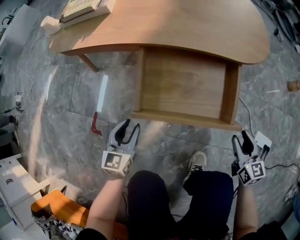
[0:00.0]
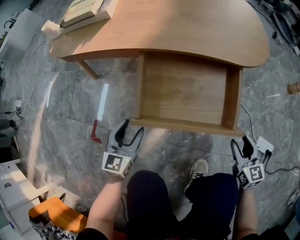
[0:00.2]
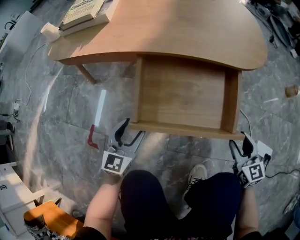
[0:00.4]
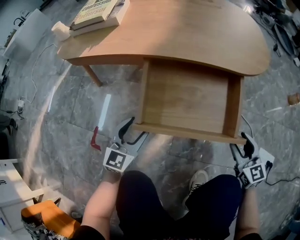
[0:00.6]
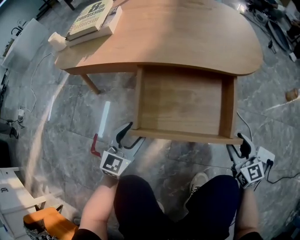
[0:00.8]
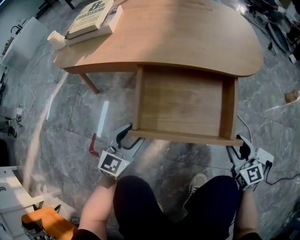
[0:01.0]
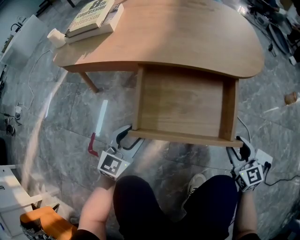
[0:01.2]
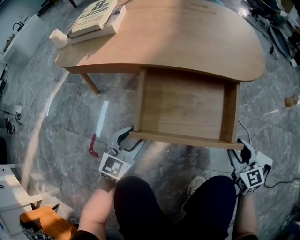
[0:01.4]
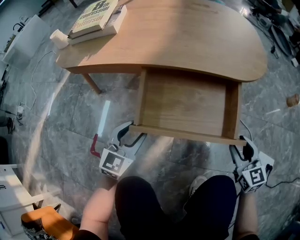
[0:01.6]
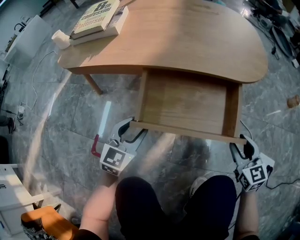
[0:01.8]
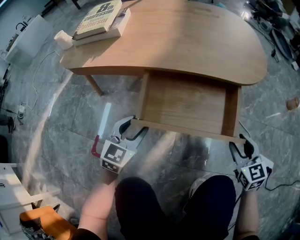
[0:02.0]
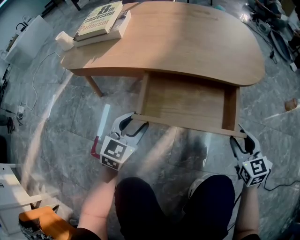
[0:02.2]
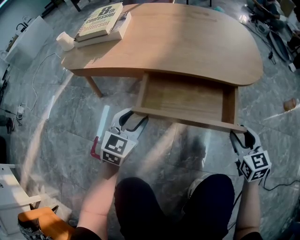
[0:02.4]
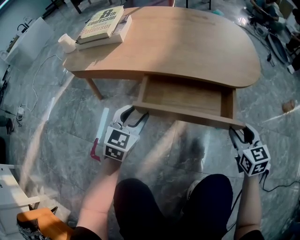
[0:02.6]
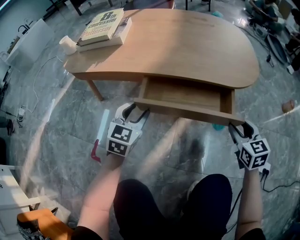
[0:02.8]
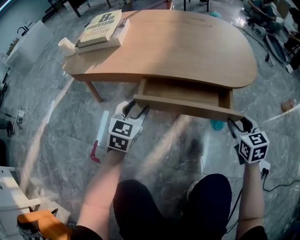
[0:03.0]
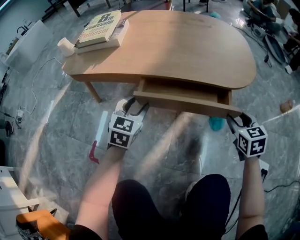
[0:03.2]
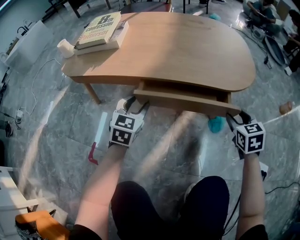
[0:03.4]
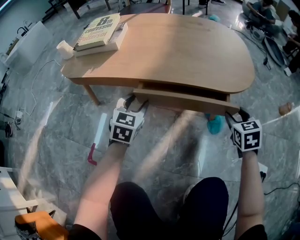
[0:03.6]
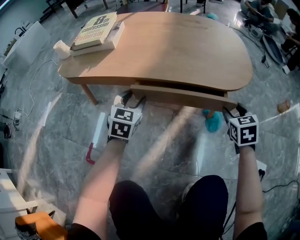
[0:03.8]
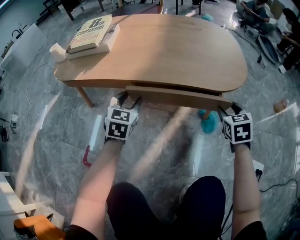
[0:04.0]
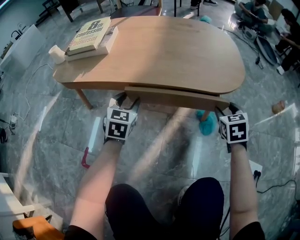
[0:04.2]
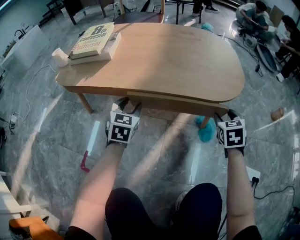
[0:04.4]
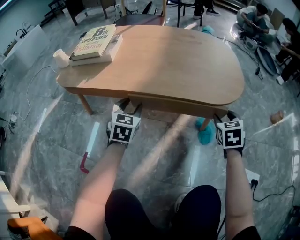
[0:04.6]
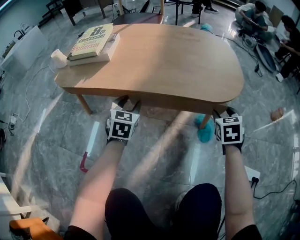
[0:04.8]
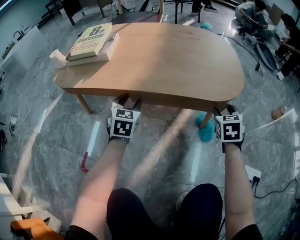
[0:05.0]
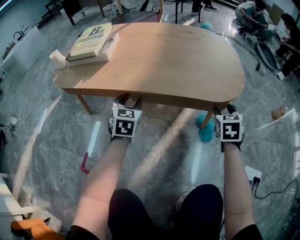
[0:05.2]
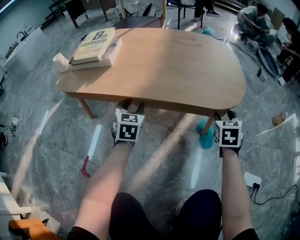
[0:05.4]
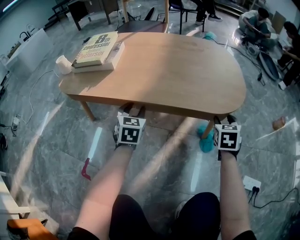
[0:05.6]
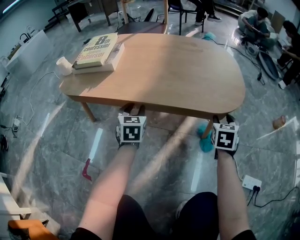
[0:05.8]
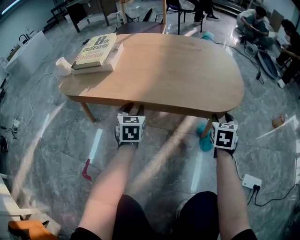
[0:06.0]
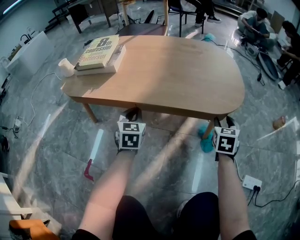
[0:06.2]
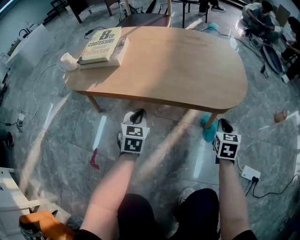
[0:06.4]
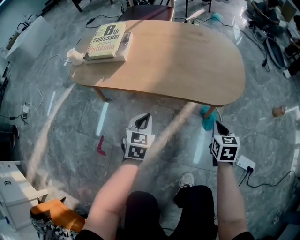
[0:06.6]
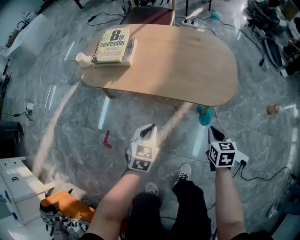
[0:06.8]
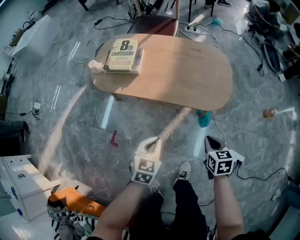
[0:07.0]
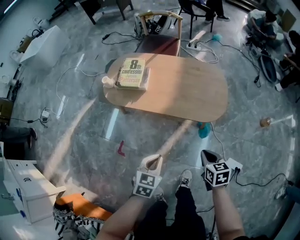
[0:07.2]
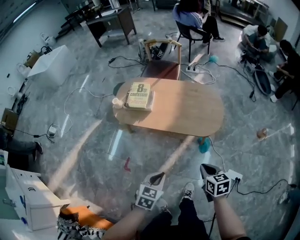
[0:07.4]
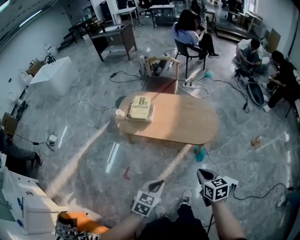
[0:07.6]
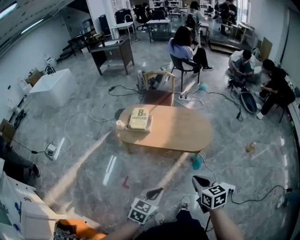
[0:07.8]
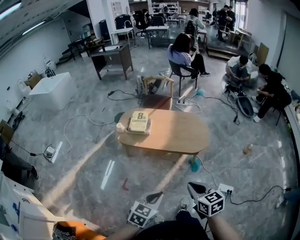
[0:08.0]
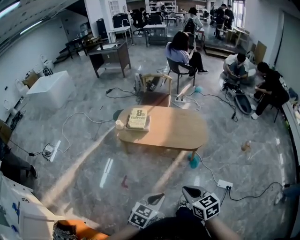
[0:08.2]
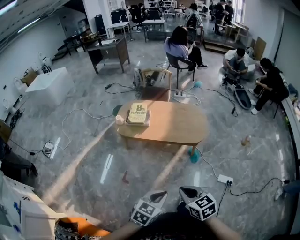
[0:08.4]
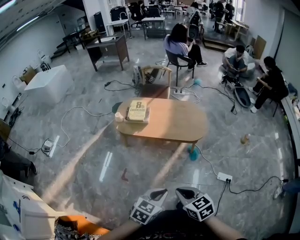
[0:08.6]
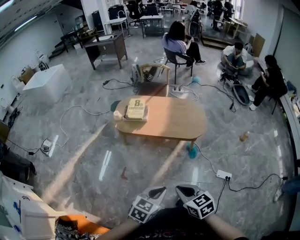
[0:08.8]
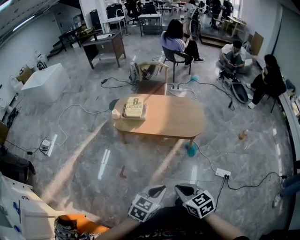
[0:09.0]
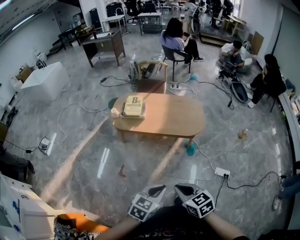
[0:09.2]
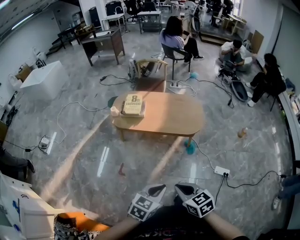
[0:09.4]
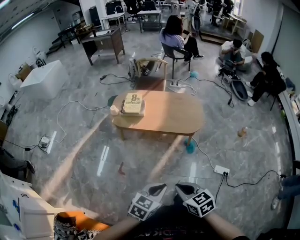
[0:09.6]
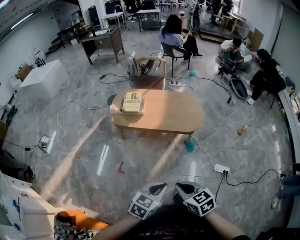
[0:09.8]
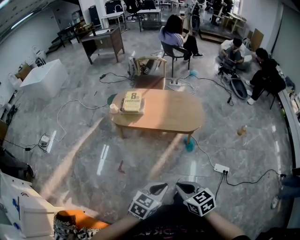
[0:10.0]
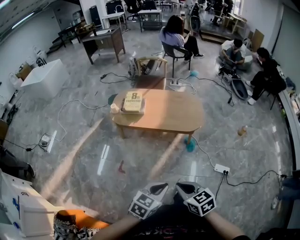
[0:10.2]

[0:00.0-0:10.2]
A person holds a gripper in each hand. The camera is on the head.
0:00.0 to 0:01.4: The left gripper ends up about 5 cm from where it was, and turns by roughly 20 degrees.
0:01.4 to 0:03.0: Both grippers travel together forward, approximately 10 cm.
0:03.0 to 0:04.4: Both grippers travel together forward, some 5 cm.
0:04.4 to 0:05.8: There are only small adjustments of the grippers.
0:05.8 to 0:07.2: The two grippers go roughly 40 cm upward and backward. The left gripper changes its angle by some 20 degrees, and closes up, while the right gripper turns by about 40 degrees, and closes up.
0:07.2 to 0:08.8: The right gripper is displaced backward, upward and to the left by approximately 40 cm. The left gripper is displaced backward and upward by approximately 35 cm.
0:08.8 to 0:10.2: The grippers stay close to where they were, moving slightly.

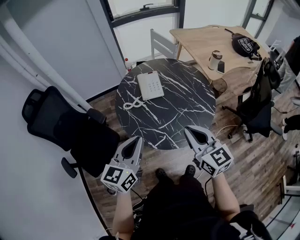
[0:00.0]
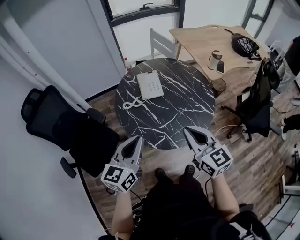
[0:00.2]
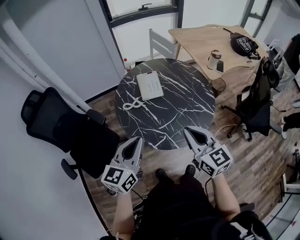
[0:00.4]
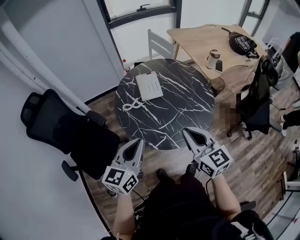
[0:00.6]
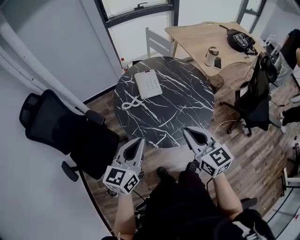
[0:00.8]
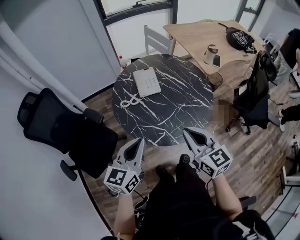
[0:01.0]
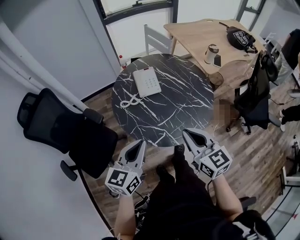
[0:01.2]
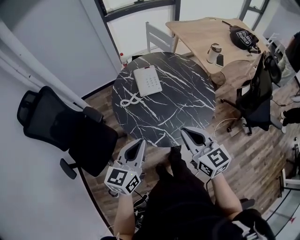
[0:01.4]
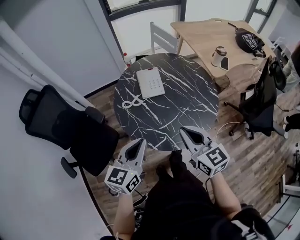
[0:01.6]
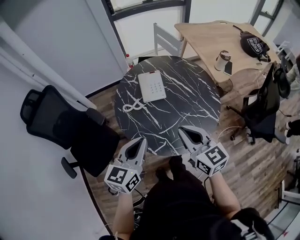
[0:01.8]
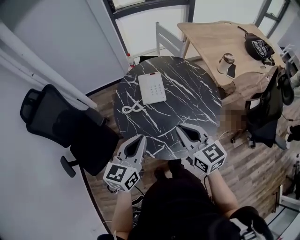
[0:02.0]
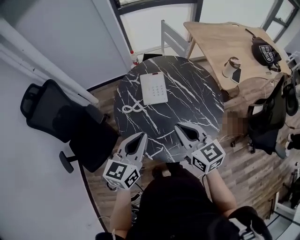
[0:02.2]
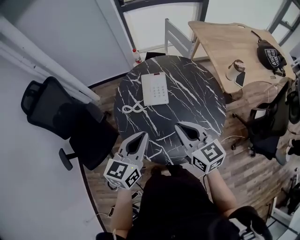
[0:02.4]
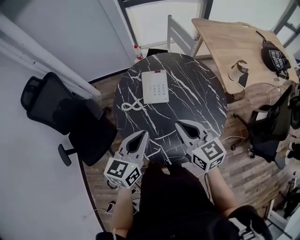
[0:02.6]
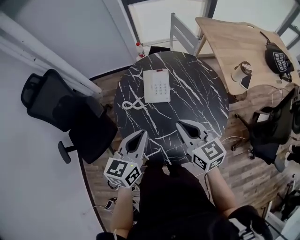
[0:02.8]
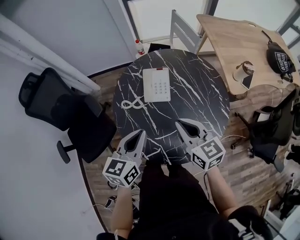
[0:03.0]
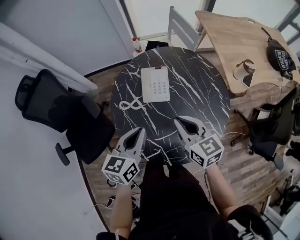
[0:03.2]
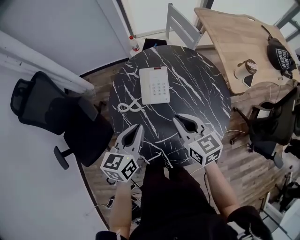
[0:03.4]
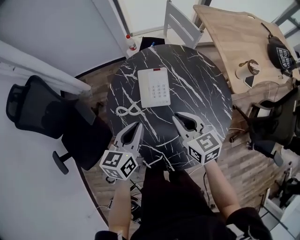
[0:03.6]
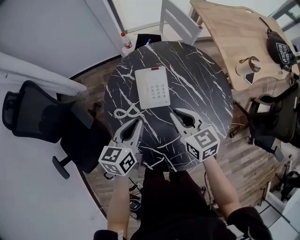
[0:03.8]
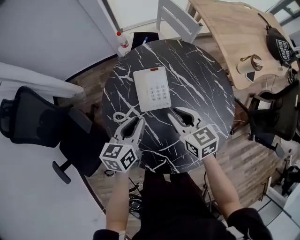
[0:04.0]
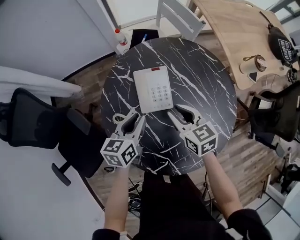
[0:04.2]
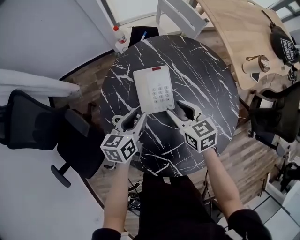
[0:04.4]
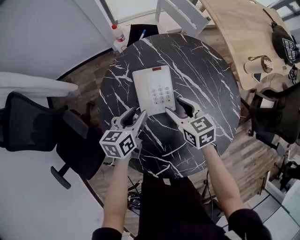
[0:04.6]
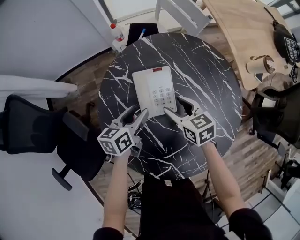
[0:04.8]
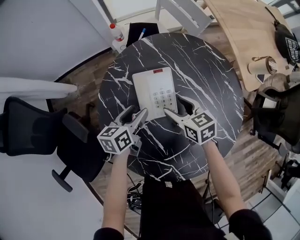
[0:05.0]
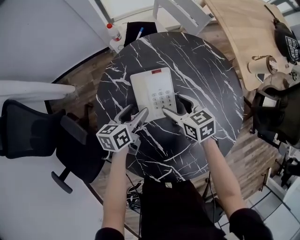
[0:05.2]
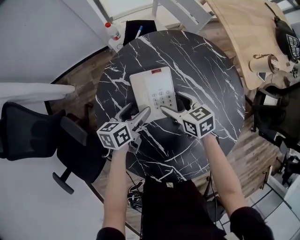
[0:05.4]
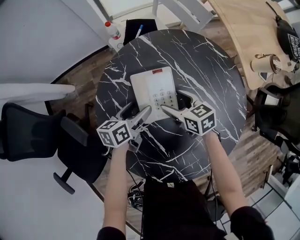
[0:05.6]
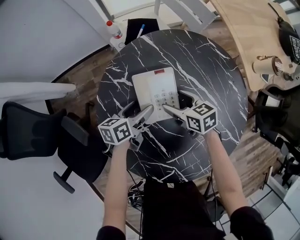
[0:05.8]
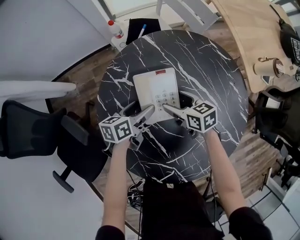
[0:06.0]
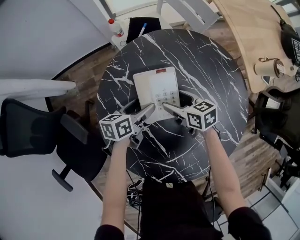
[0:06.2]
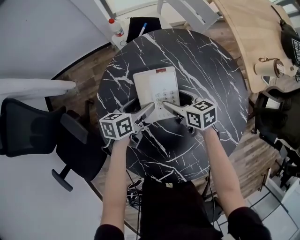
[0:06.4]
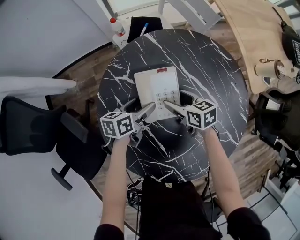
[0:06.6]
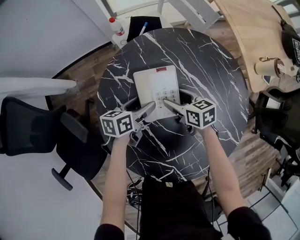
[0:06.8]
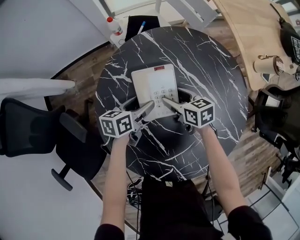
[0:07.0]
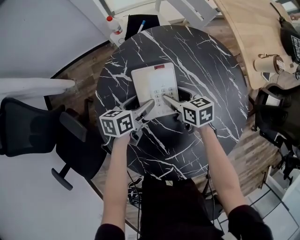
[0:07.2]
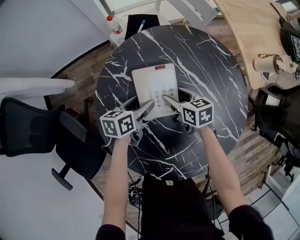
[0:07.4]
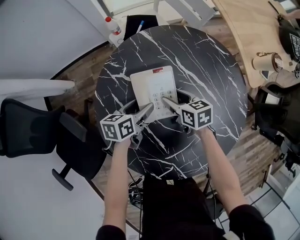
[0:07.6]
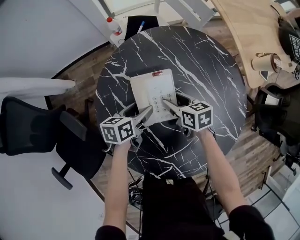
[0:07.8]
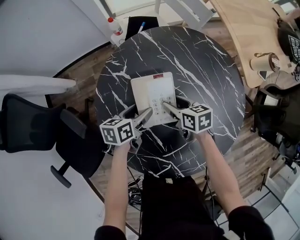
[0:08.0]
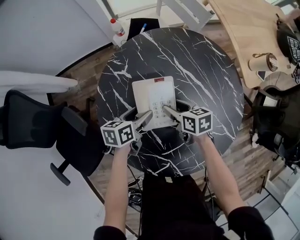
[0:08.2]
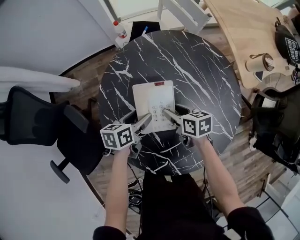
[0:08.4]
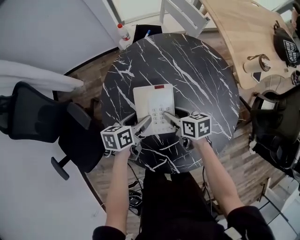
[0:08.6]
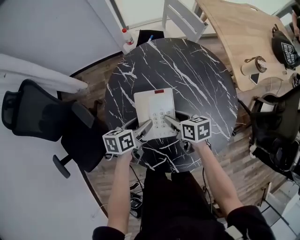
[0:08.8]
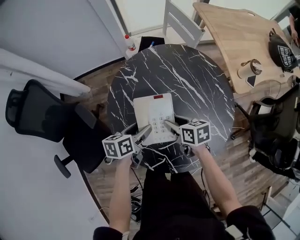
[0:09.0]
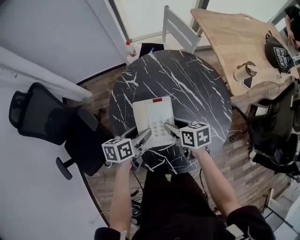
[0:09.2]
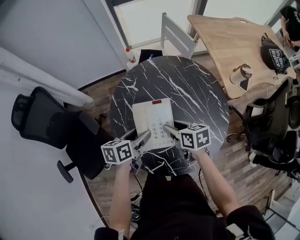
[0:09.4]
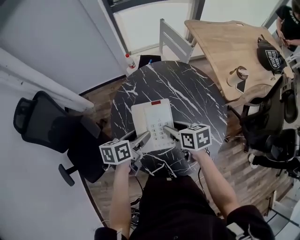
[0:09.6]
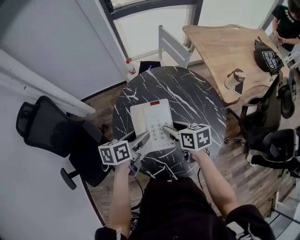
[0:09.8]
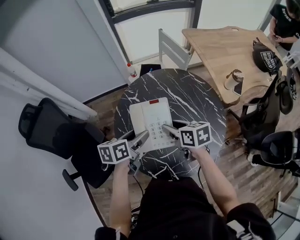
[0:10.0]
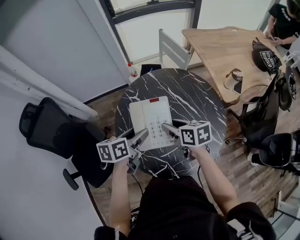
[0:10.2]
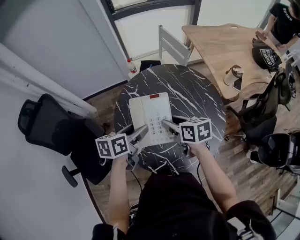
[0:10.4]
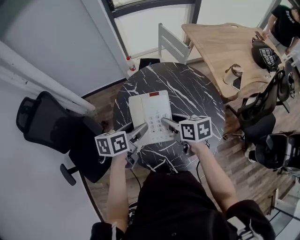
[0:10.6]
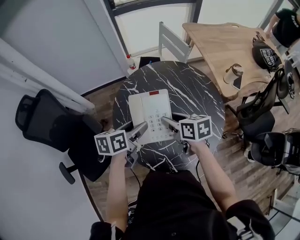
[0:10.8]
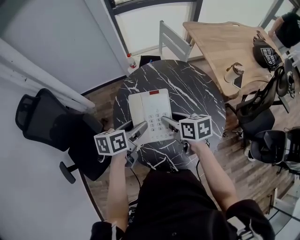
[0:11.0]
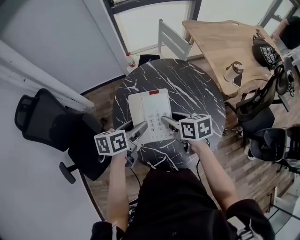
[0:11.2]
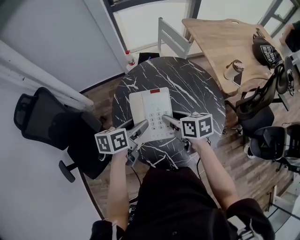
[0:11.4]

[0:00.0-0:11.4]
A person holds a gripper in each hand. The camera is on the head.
0:00.0 to 0:01.4: The grippers stay close to where they were, moving slightly.
0:01.4 to 0:02.8: The left gripper heads forward and to the right, covering roughly 15 cm. Meanwhile the right gripper shifts approximately 20 cm forward.
0:02.8 to 0:04.2: The left gripper goes some 25 cm forward and downward. The right gripper travels downward and forward by some 20 cm.
0:04.2 to 0:05.6: The grippers both shift downward and forward by some 15 cm. The right gripper opens. Meanwhile the left gripper opens.
0:05.6 to 0:07.2: The grippers move only a little.
0:07.2 to 0:08.6: The two grippers go some 15 cm backward and upward.
0:08.6 to 0:10.0: The grippers both shift upward by some 20 cm.
0:10.0 to 0:11.4: The grippers stay close to where they were, moving slightly.

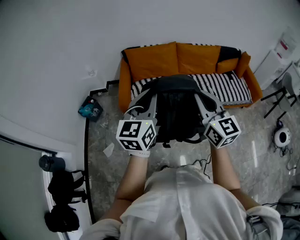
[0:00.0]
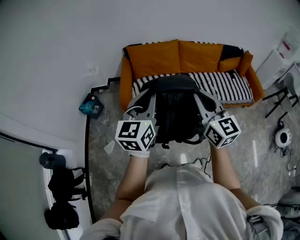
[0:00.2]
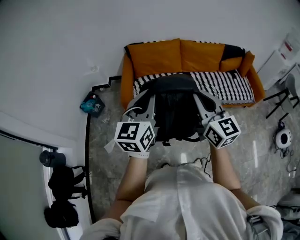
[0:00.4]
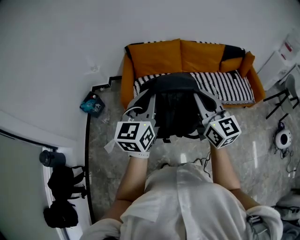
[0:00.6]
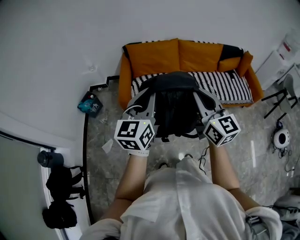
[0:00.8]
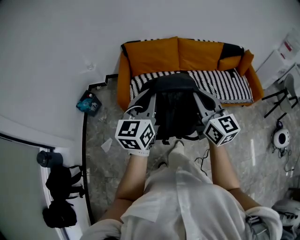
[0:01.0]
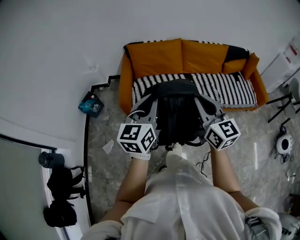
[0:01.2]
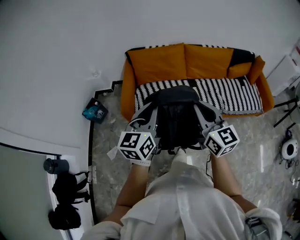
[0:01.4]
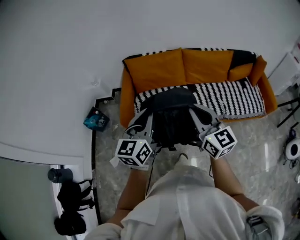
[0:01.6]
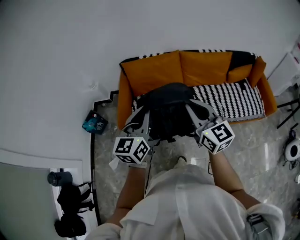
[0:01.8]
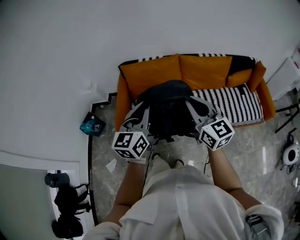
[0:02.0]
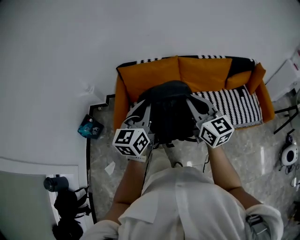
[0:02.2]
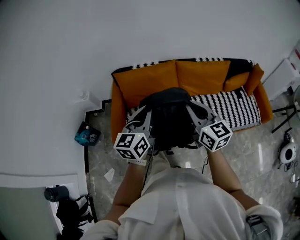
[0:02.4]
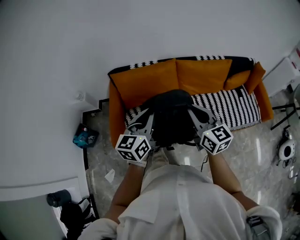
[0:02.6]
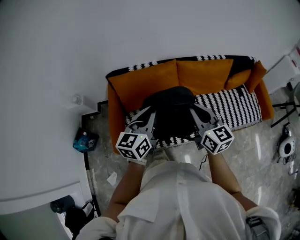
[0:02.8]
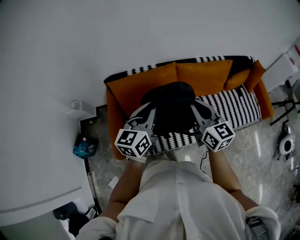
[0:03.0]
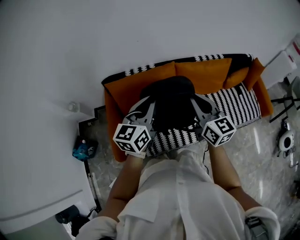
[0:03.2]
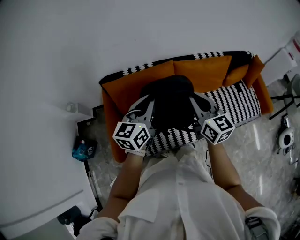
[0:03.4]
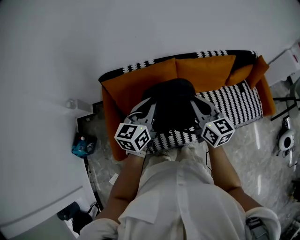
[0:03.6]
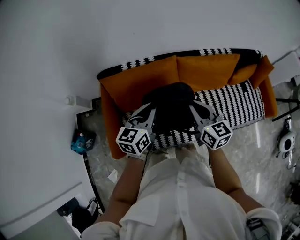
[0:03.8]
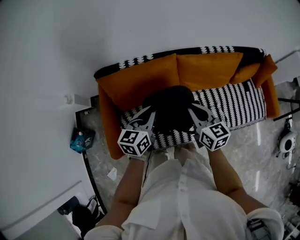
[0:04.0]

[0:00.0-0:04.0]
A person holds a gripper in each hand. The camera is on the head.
0:00.0 to 0:01.4: Both grippers travel together forward and downward, about 10 cm.
0:01.4 to 0:02.6: Both grippers move forward, some 25 cm.
0:02.6 to 0:04.0: Both grippers move forward and downward, about 20 cm.
